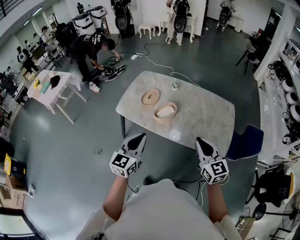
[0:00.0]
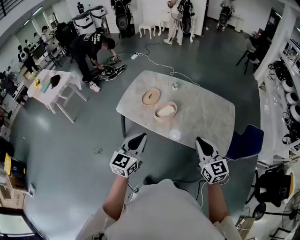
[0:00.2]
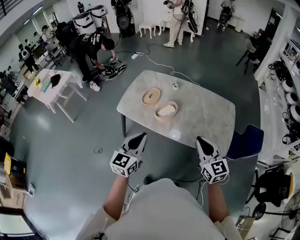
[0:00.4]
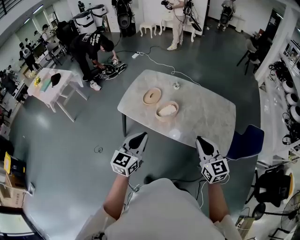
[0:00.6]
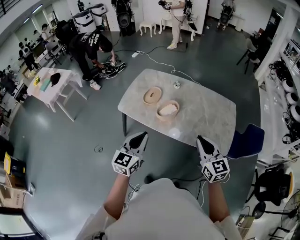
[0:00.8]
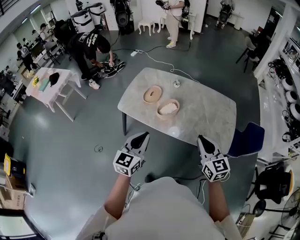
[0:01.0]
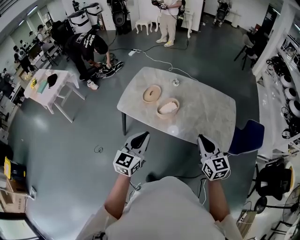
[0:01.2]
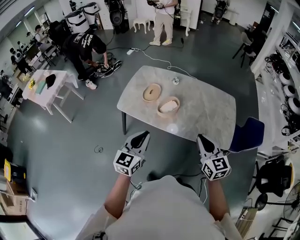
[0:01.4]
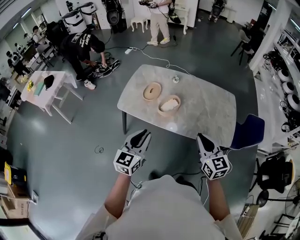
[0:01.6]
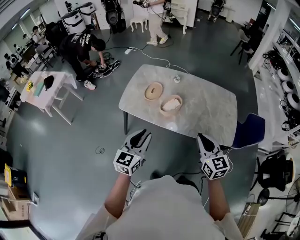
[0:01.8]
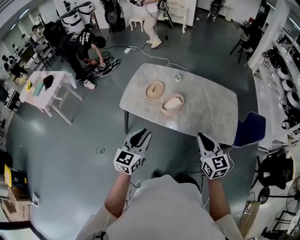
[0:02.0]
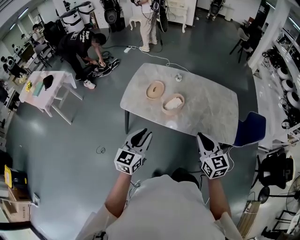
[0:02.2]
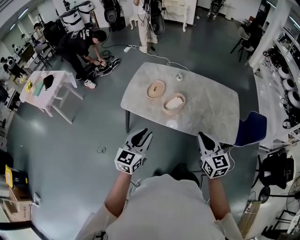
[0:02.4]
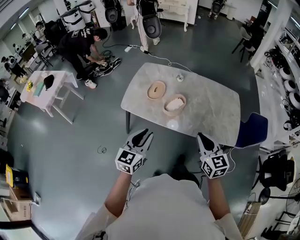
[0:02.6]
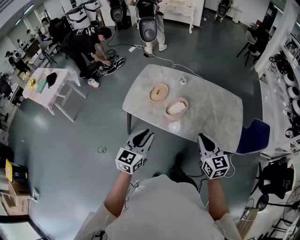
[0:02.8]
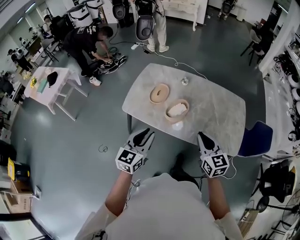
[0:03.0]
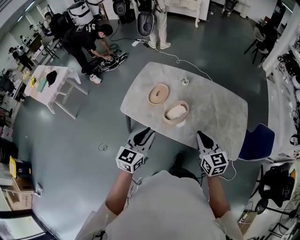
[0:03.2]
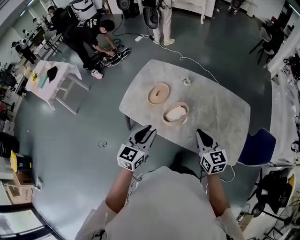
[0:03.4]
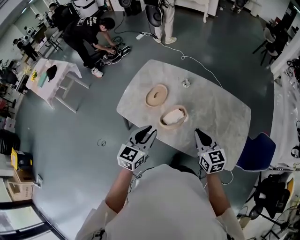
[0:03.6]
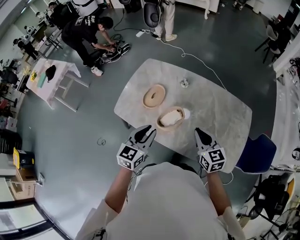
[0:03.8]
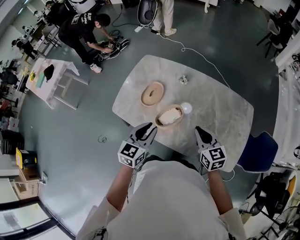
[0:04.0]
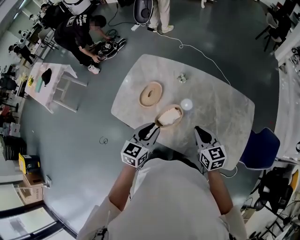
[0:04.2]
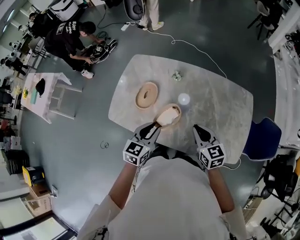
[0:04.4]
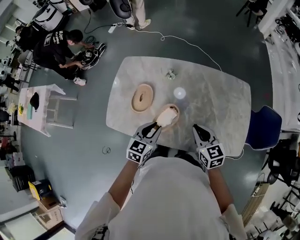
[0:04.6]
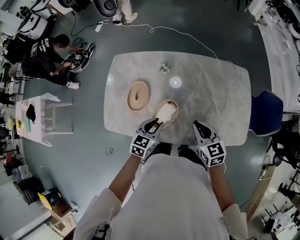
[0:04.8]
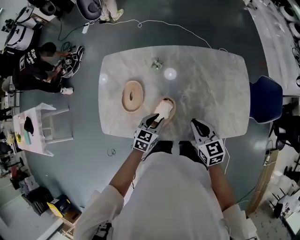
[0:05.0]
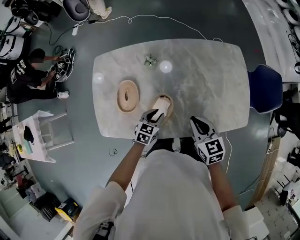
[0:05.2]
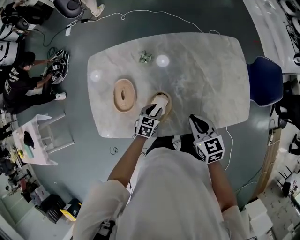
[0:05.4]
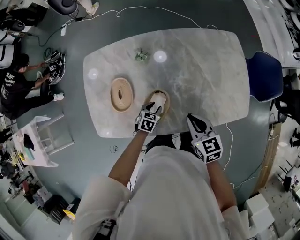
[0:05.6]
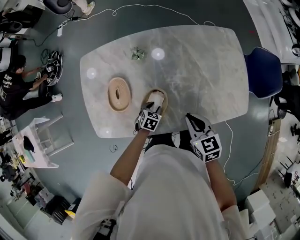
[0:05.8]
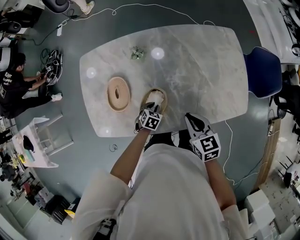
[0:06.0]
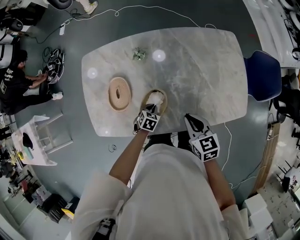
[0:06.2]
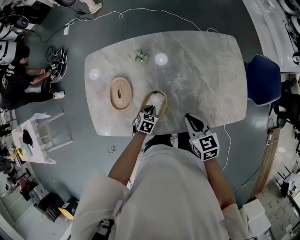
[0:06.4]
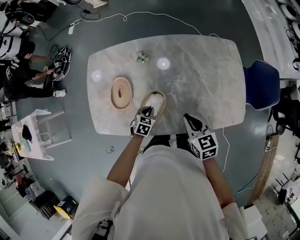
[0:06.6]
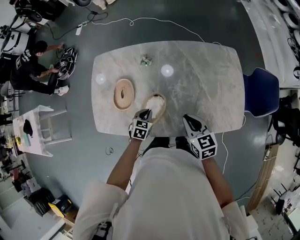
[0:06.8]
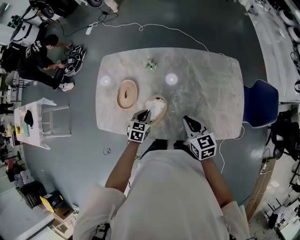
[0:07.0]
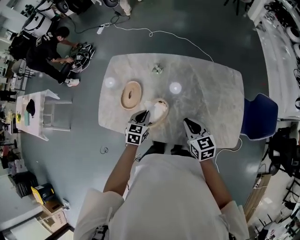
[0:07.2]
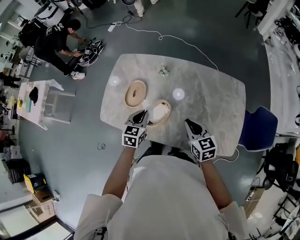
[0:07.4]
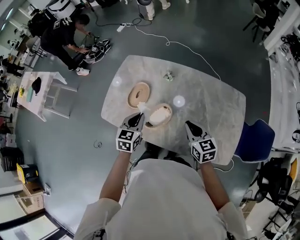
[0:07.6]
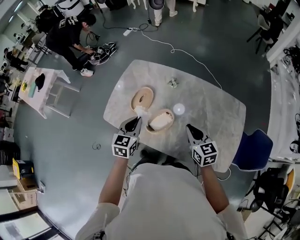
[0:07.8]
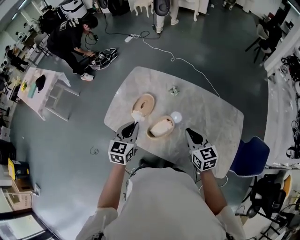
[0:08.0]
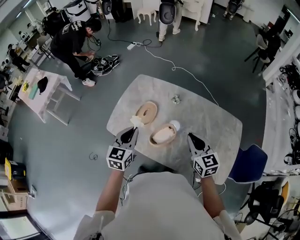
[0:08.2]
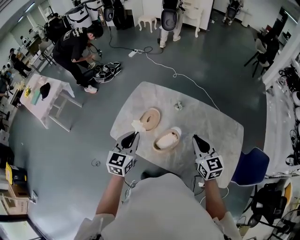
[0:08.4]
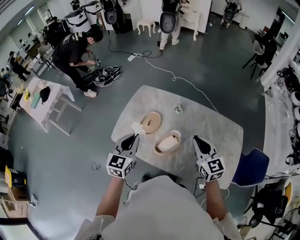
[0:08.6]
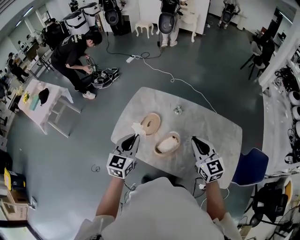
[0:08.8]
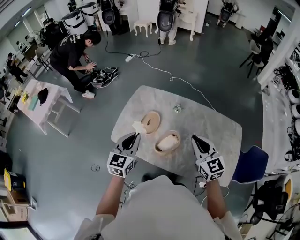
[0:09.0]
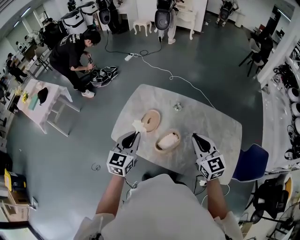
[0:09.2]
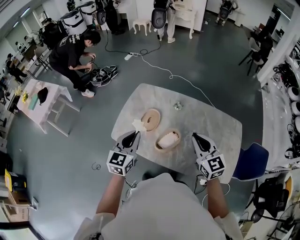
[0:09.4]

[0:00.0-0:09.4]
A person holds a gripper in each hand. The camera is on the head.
0:00.0 to 0:01.6: The two grippers go some 5 cm to the left.
0:01.6 to 0:03.2: Both grippers move forward, about 15 cm.
0:03.2 to 0:04.8: The left gripper is displaced forward, downward and to the right by approximately 35 cm, and turns by about 30 degrees. The right gripper shifts approximately 25 cm forward and downward.
0:04.8 to 0:06.2: The left gripper travels downward by approximately 25 cm, and points its fingers some 30 degrees further downward. Meanwhile the right gripper moves downward, about 10 cm.
0:06.2 to 0:07.8: The left gripper is displaced upward by about 35 cm, and angles its fingers upward, by some 40 degrees. The right gripper goes approximately 10 cm upward, and turns by about 30 degrees.
0:07.8 to 0:09.4: Both grippers move upward and to the left, some 15 cm.

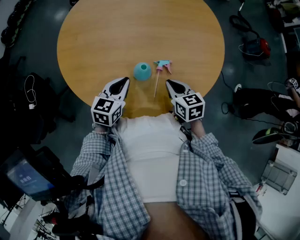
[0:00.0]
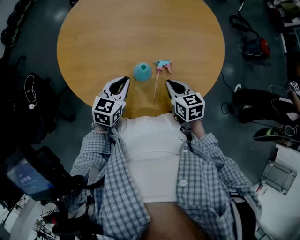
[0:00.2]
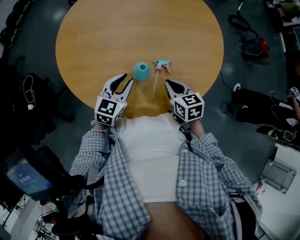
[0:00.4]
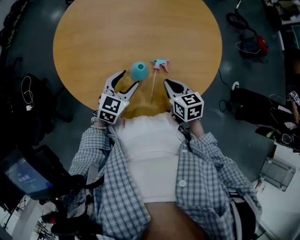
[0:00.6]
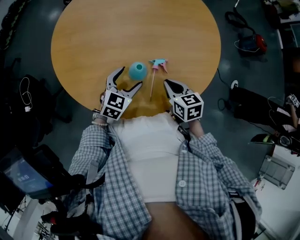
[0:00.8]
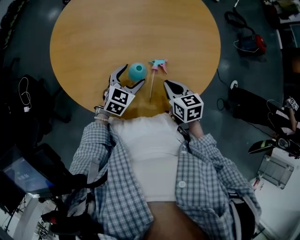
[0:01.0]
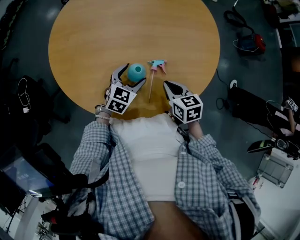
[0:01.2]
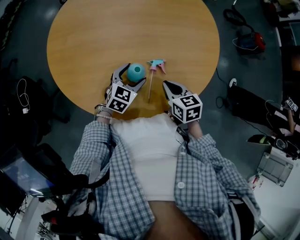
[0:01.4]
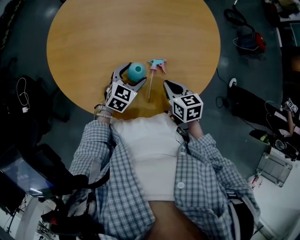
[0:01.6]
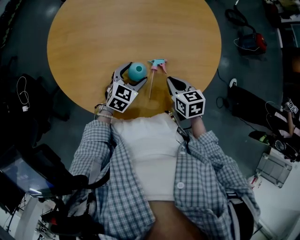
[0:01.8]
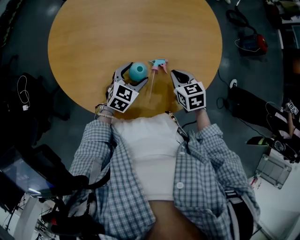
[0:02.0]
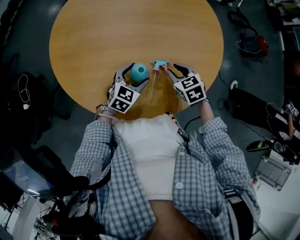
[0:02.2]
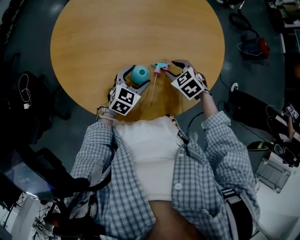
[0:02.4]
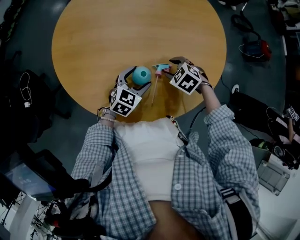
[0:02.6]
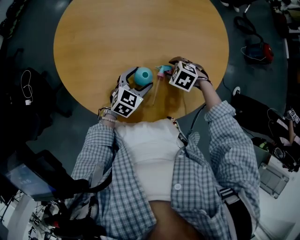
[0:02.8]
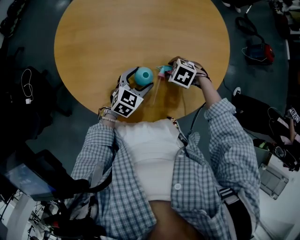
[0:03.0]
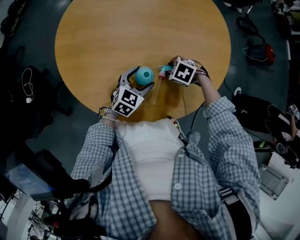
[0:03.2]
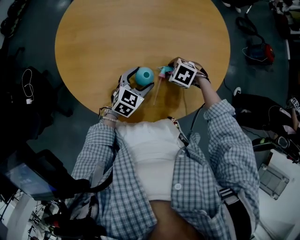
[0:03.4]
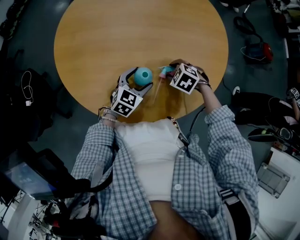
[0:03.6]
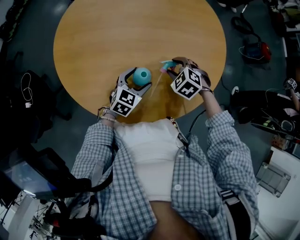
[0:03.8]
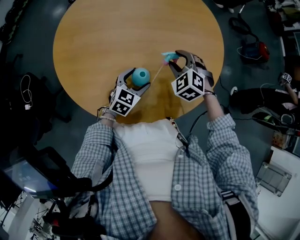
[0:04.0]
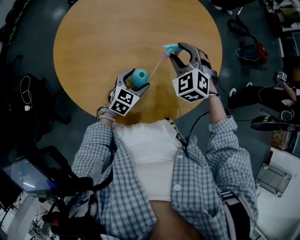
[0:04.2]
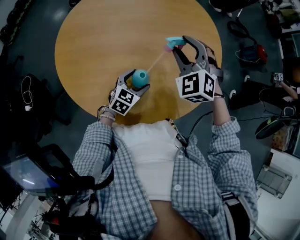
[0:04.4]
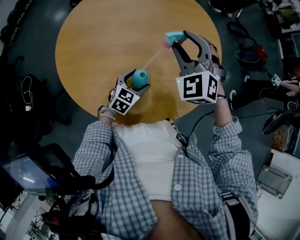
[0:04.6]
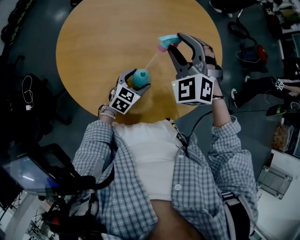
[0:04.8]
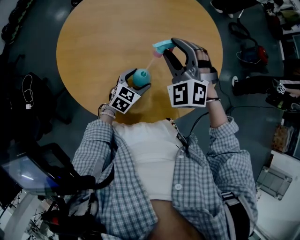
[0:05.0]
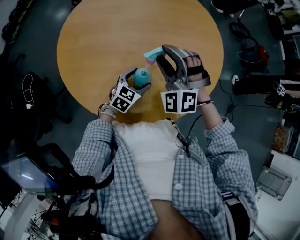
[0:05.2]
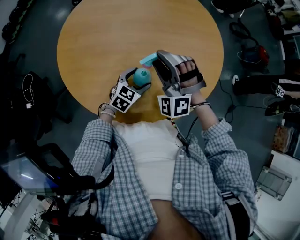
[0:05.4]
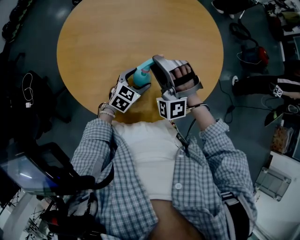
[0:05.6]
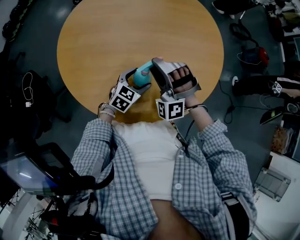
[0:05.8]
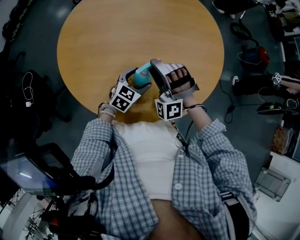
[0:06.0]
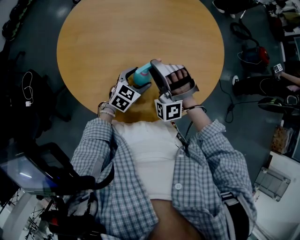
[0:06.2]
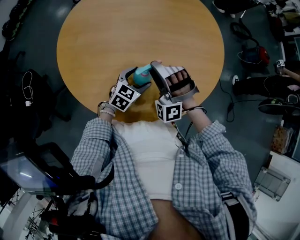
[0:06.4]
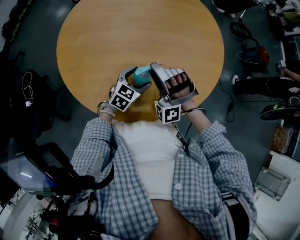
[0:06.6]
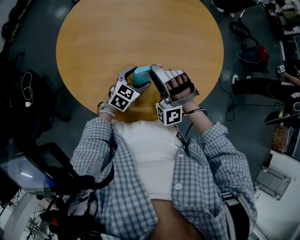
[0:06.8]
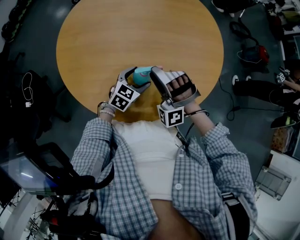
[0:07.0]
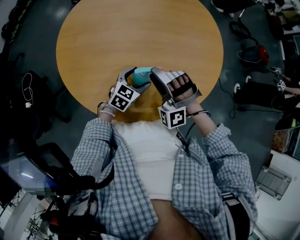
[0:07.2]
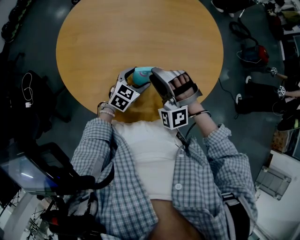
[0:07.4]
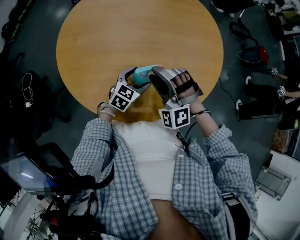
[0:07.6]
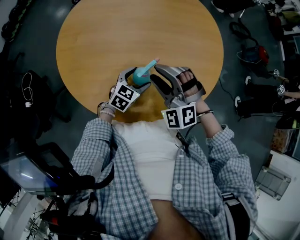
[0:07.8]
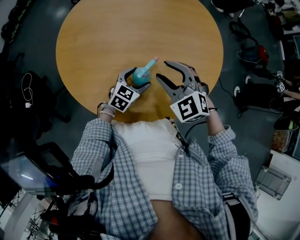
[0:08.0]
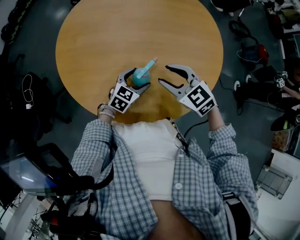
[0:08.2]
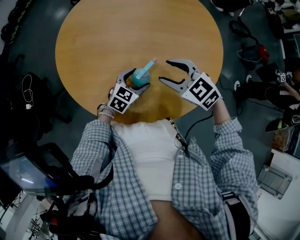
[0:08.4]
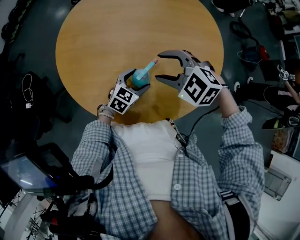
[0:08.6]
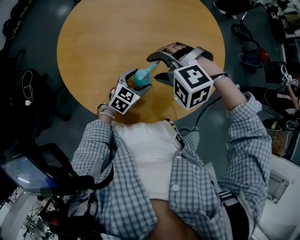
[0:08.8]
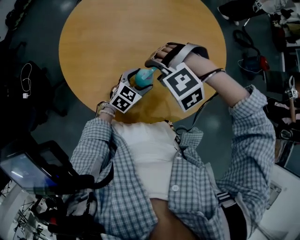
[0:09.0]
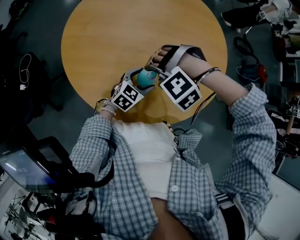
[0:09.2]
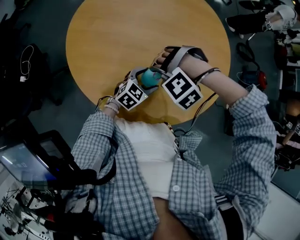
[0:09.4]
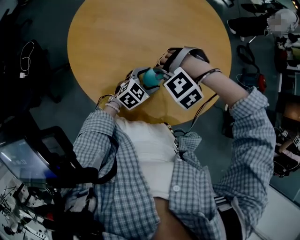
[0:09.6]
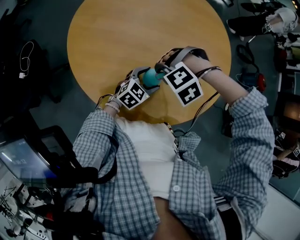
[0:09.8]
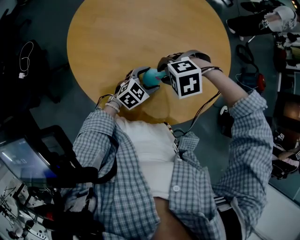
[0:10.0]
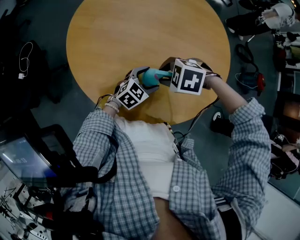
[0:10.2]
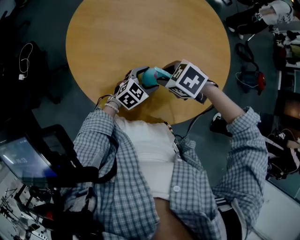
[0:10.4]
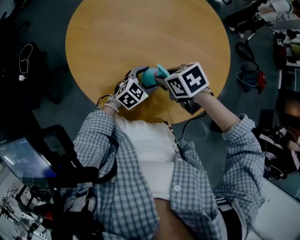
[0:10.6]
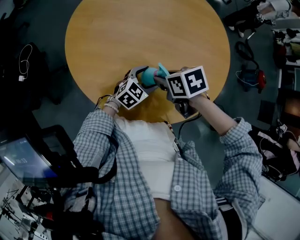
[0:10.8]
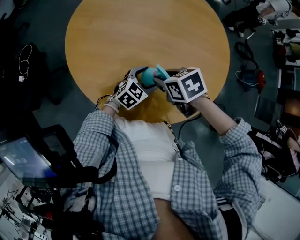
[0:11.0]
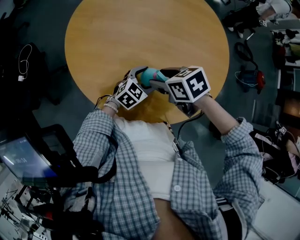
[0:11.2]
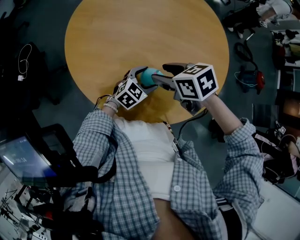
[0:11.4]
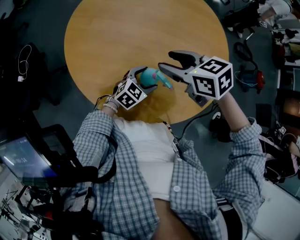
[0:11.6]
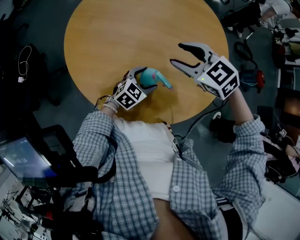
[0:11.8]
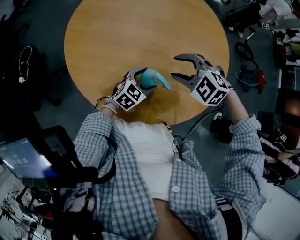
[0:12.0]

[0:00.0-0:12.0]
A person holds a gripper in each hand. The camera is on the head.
0:00.0 to 0:01.6: The left gripper moves to the right, about 10 cm, turns by approximately 20 degrees, and opens.
0:01.6 to 0:03.0: The right gripper moves about 10 cm, points its fingers some 40 degrees further downward, and opens its fingers.
0:03.0 to 0:04.4: The right gripper is displaced upward by approximately 25 cm, and angles its fingers upward, by roughly 50 degrees.
0:04.4 to 0:06.0: The right gripper travels backward, downward and to the left by some 15 cm, and changes its angle by approximately 30 degrees.
0:06.0 to 0:07.6: The grippers stay close to where they were, moving slightly.
0:07.6 to 0:09.0: The right gripper angles its fingers downward, by approximately 50 degrees.
0:09.0 to 0:10.4: The right gripper twists roughly 70 degrees clockwise, seen from behind, and closes up.
0:10.4 to 0:12.0: The right gripper turns by about 40 degrees, and opens.

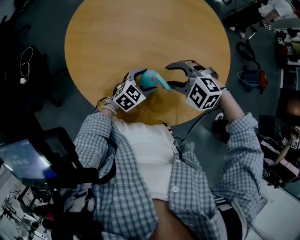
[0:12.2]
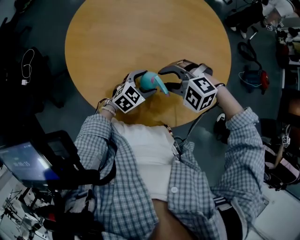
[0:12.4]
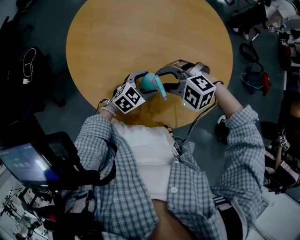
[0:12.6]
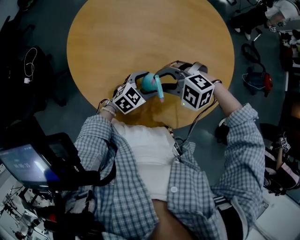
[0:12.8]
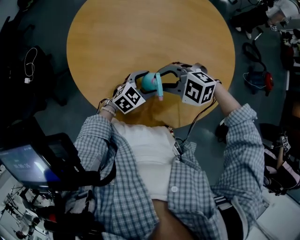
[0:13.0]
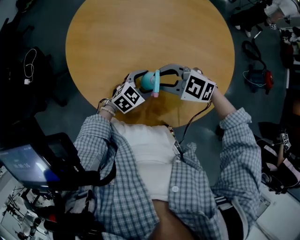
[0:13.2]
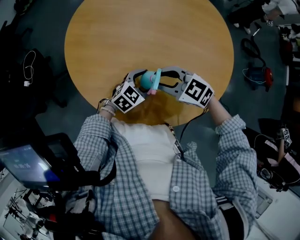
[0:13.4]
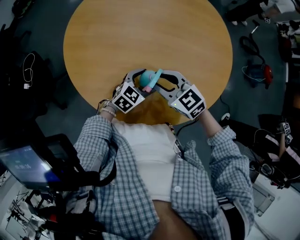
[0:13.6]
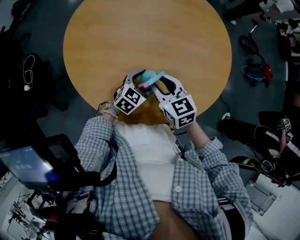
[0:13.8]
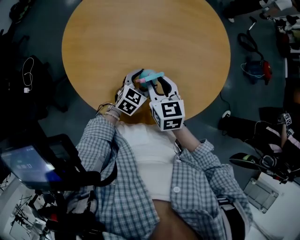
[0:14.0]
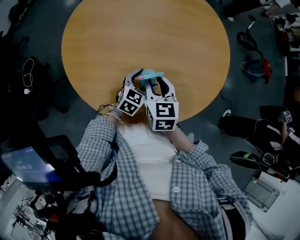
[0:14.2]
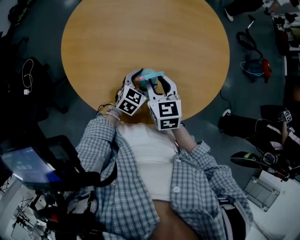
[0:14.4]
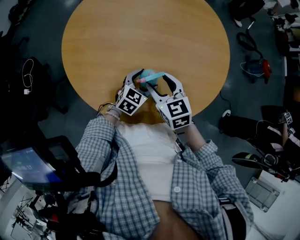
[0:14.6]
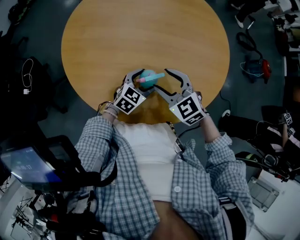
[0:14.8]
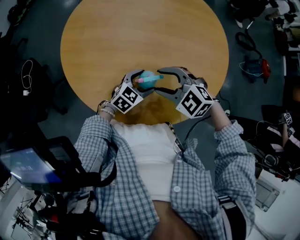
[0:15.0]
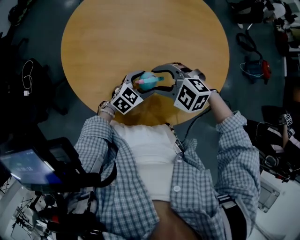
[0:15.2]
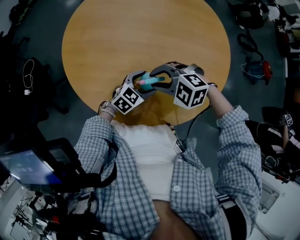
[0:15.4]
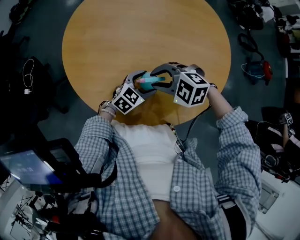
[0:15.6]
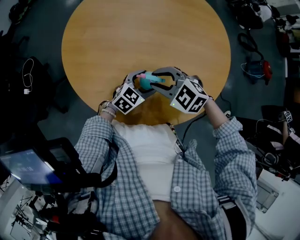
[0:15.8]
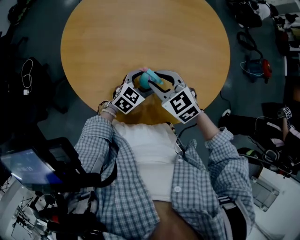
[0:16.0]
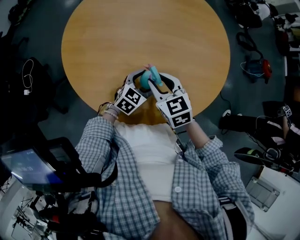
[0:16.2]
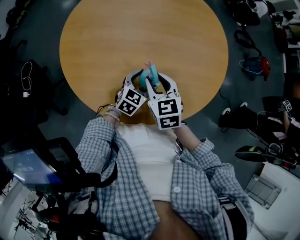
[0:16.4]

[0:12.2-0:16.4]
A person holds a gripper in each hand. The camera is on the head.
0:12.2 to 0:13.6: The right gripper rolls clockwise, seen from behind, by about 40 degrees.
0:13.6 to 0:15.0: The right gripper swivels approximately 30 degrees, and opens its fingers.
0:15.0 to 0:16.4: The right gripper swivels some 60 degrees, and closes its fingers.
